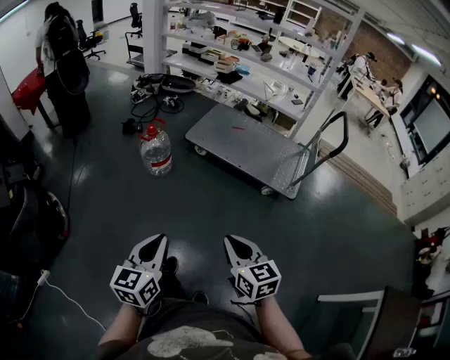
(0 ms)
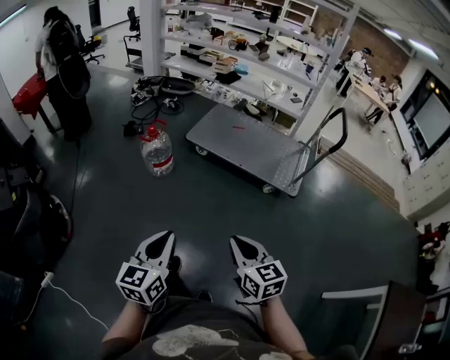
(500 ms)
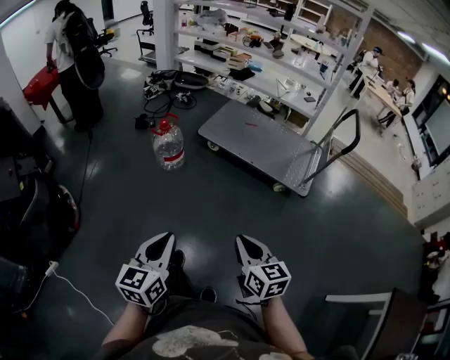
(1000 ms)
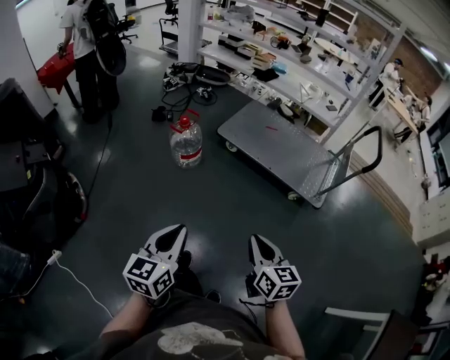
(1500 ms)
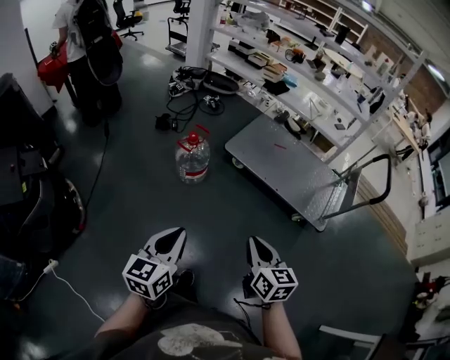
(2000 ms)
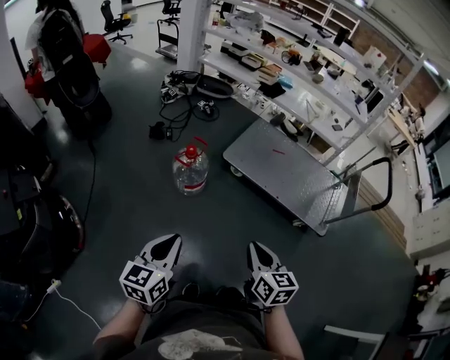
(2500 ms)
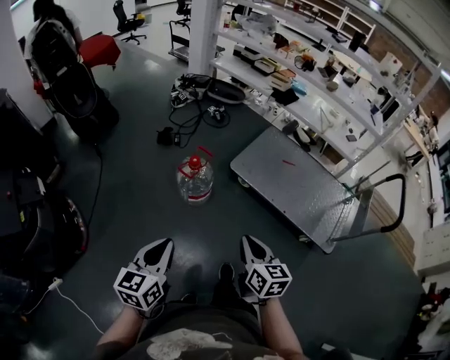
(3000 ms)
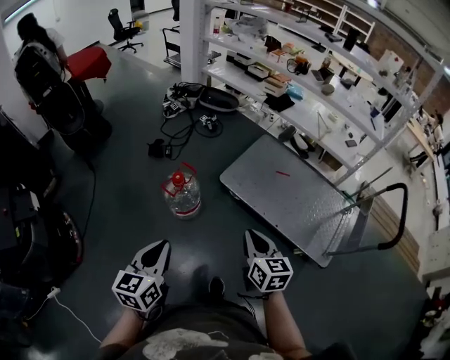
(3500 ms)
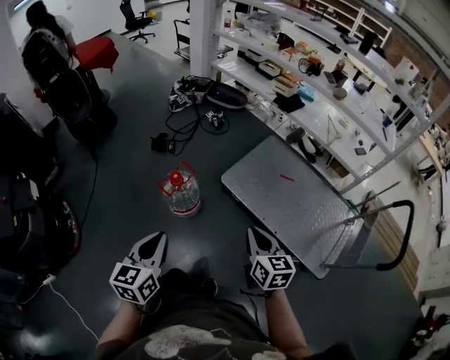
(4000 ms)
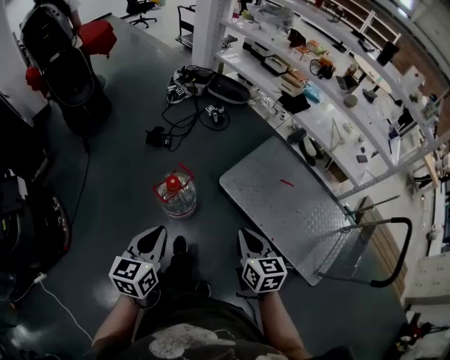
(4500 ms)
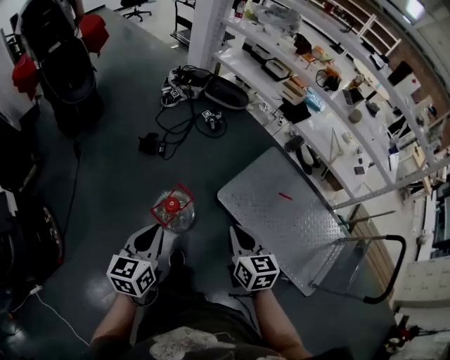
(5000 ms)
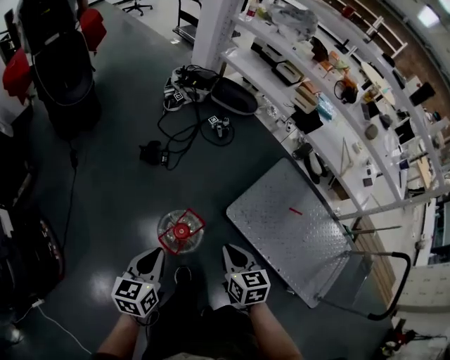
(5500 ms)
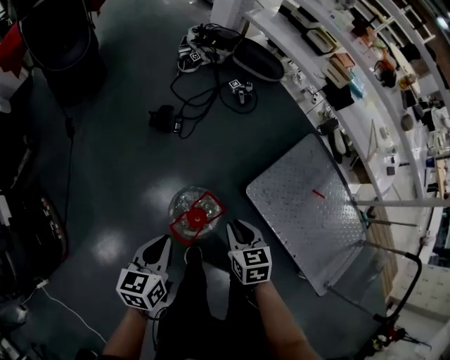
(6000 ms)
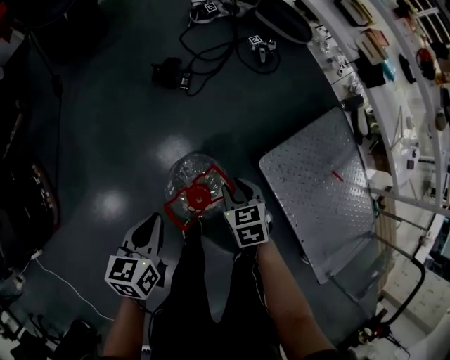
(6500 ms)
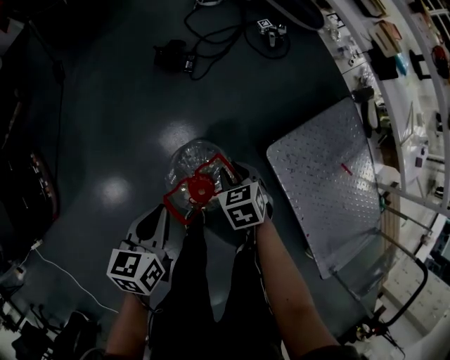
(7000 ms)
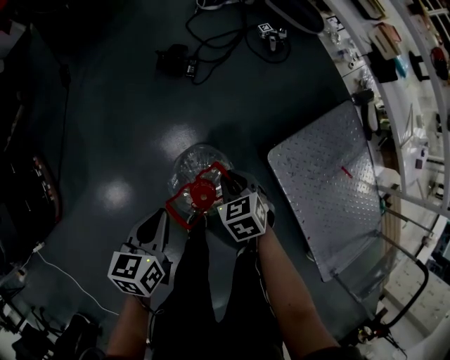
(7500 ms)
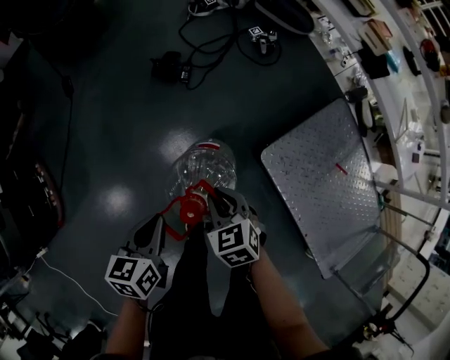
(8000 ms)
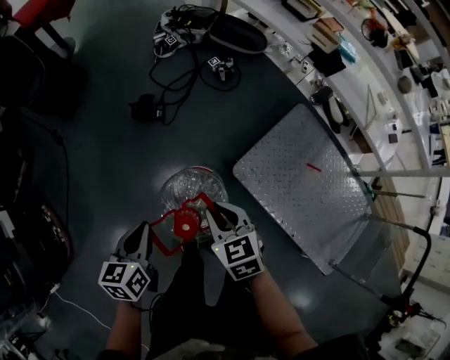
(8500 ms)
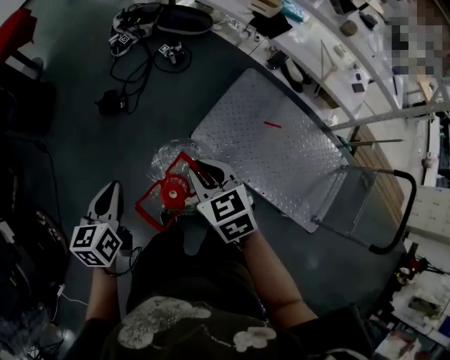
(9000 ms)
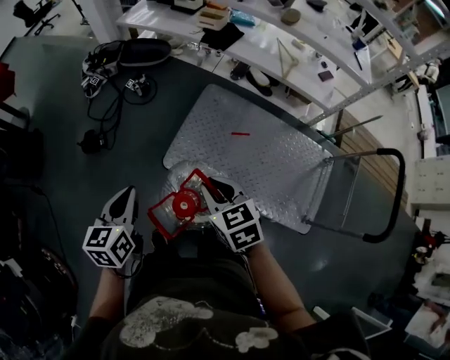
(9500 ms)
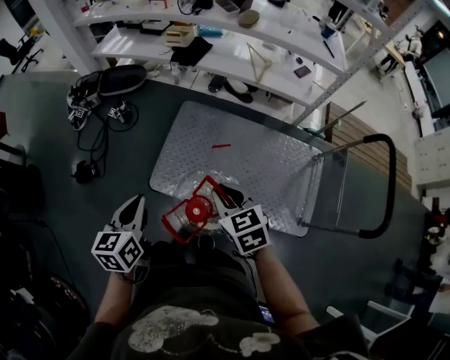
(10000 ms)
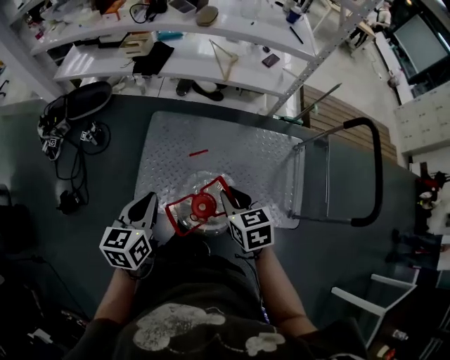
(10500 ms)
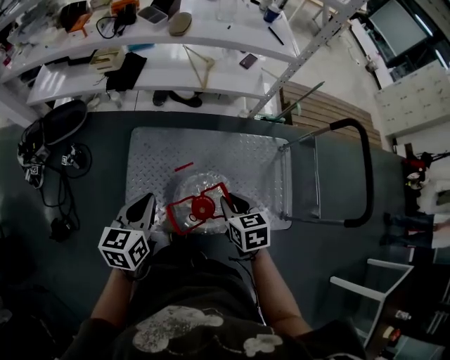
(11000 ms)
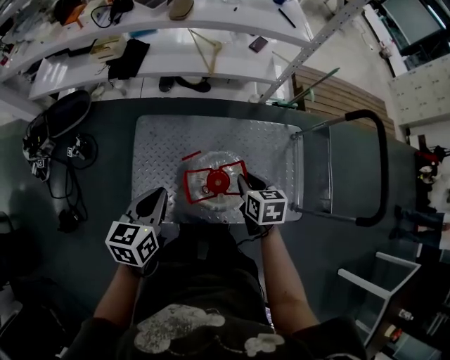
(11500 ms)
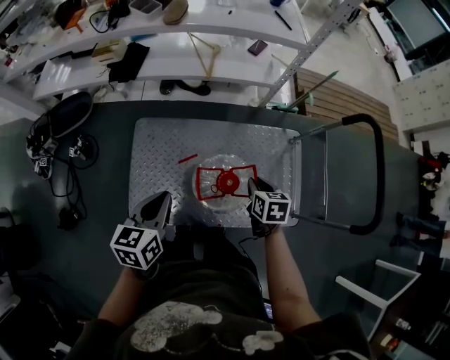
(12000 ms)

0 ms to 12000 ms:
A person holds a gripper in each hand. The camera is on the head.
0 ms to 2000 ms: Both grippers travel together forward and to the left, about 20 cm.
2000 ms to 4000 ms: The grippers both shift forward by roughly 35 cm.
4000 ms to 6000 ms: The left gripper is displaced forward, downward and to the left by some 40 cm; the right gripper shifts roughly 50 cm forward, to the left and downward, and changes its angle by about 30 degrees.
6000 ms to 8000 ms: The left gripper shifts some 10 cm downward. Meanwhile the right gripper heads downward and to the left, covering some 10 cm, and rotates some 30 degrees.
8000 ms to 10000 ms: The two grippers travel together, about 50 cm. The left gripper rotates some 40 degrees; the right gripper swivels some 40 degrees.
10000 ms to 12000 ms: The right gripper ends up roughly 35 cm from where it was, and changes its angle by roughly 50 degrees. Meanwhile the left gripper shifts by about 30 cm, and swivels approximately 30 degrees.

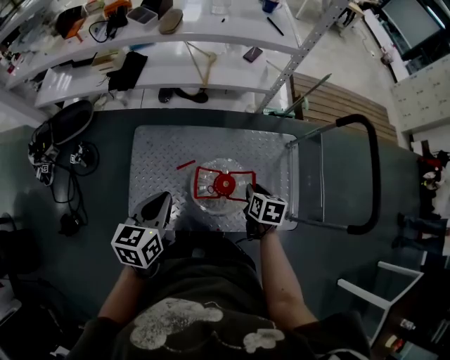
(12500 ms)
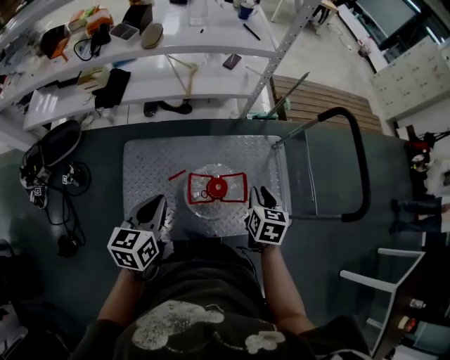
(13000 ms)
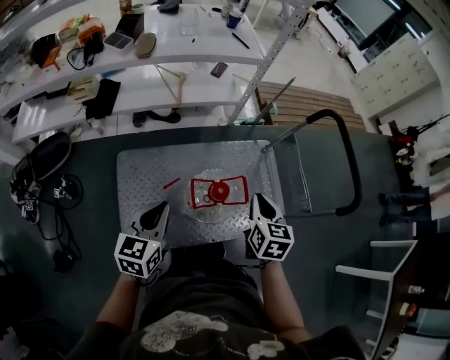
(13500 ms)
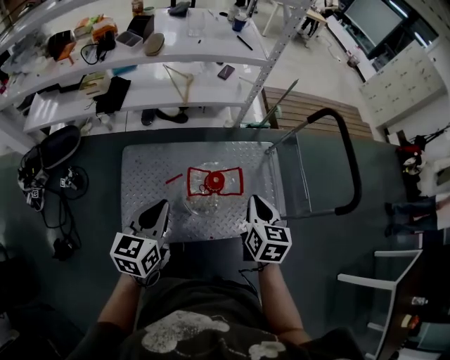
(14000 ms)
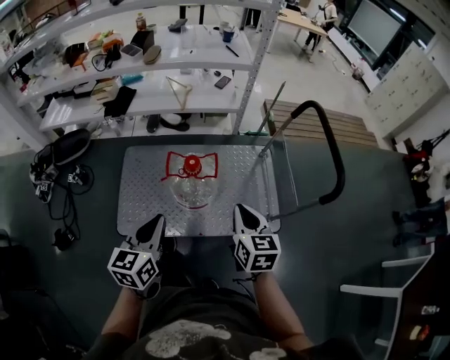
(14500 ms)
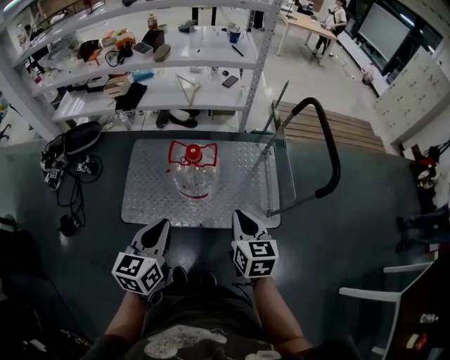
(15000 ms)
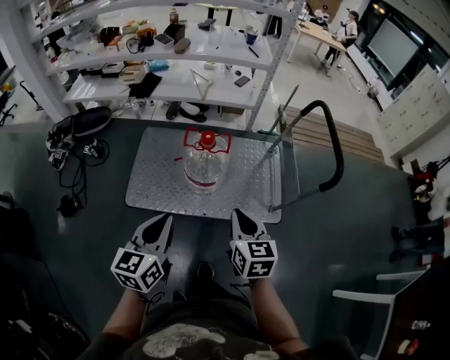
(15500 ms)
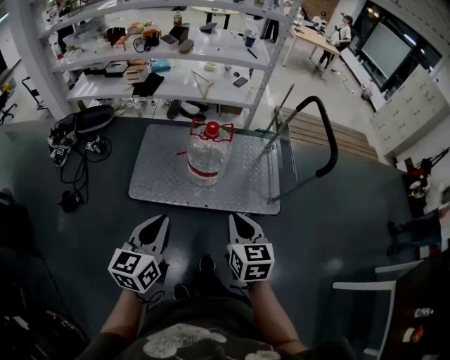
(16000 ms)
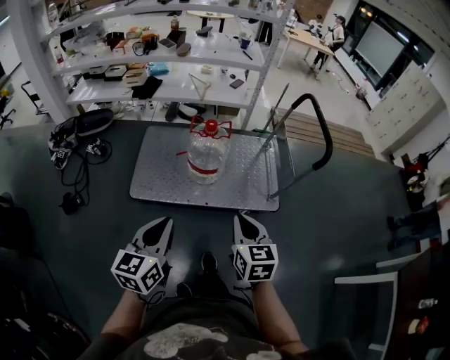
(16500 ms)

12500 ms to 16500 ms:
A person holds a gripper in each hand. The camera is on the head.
12500 ms to 14500 ms: The right gripper is displaced backward, upward and to the right by roughly 30 cm, and rotates some 30 degrees. Meanwhile the left gripper heads backward and to the right, covering roughly 25 cm.
14500 ms to 16500 ms: Both grippers move backward, about 30 cm.

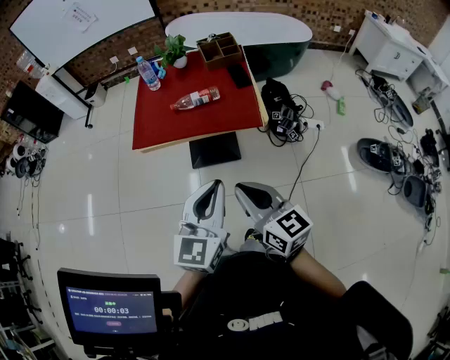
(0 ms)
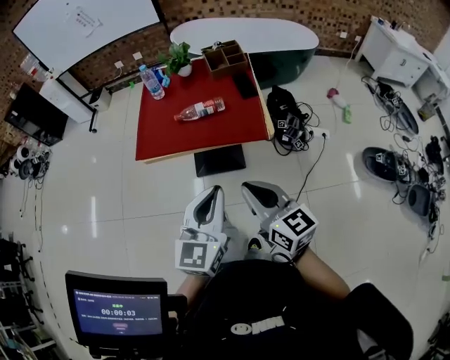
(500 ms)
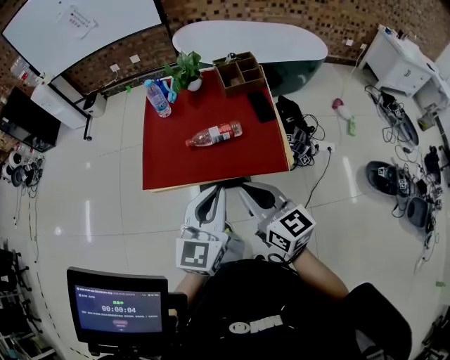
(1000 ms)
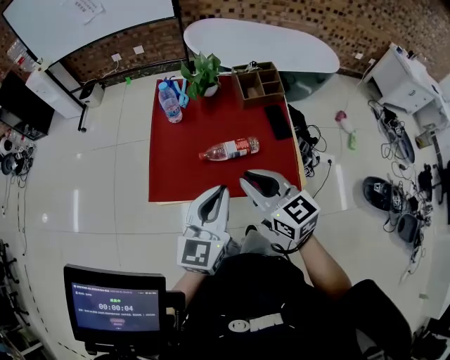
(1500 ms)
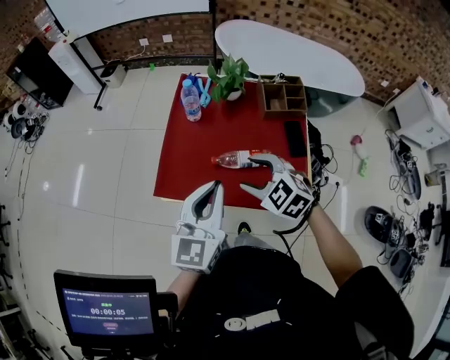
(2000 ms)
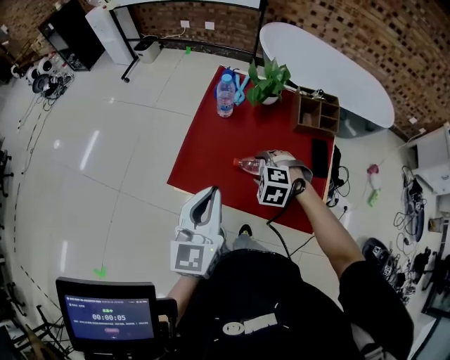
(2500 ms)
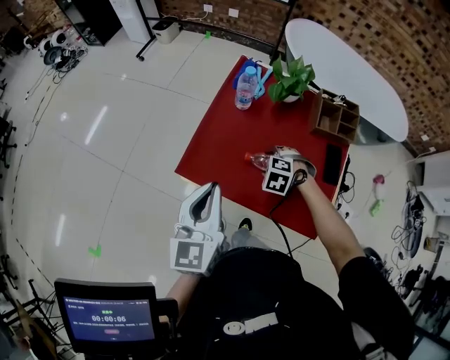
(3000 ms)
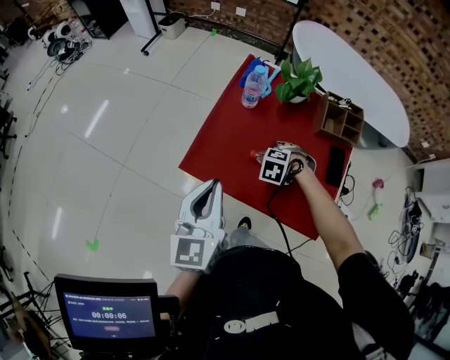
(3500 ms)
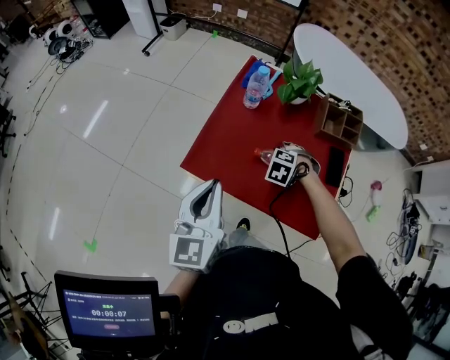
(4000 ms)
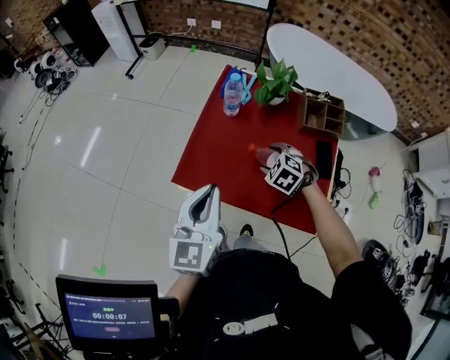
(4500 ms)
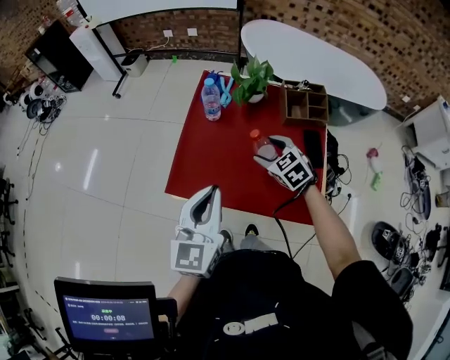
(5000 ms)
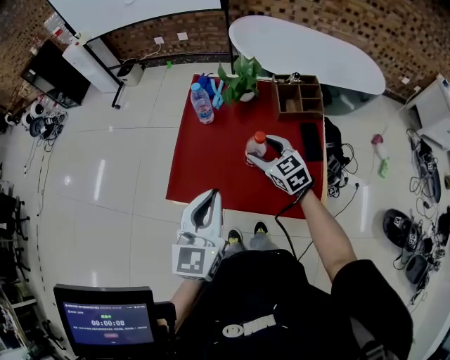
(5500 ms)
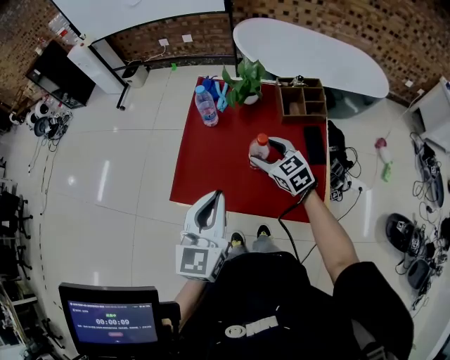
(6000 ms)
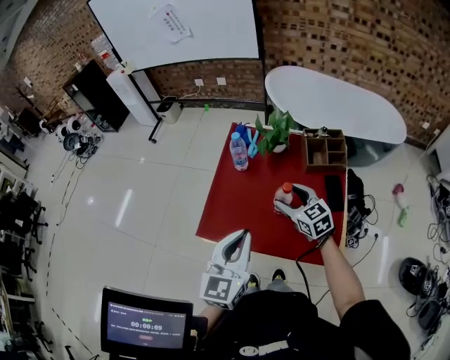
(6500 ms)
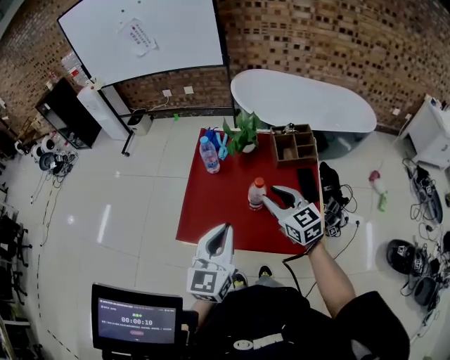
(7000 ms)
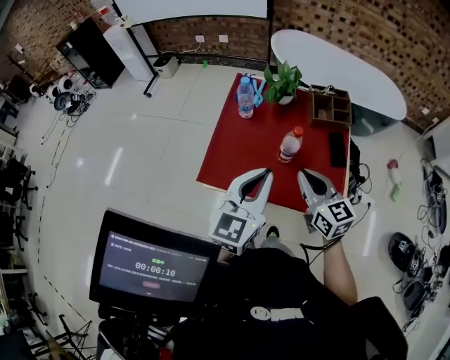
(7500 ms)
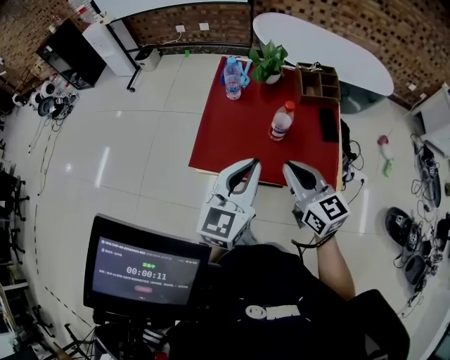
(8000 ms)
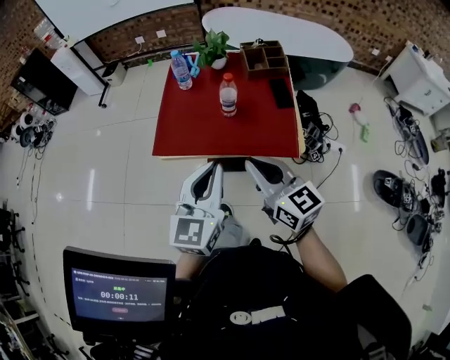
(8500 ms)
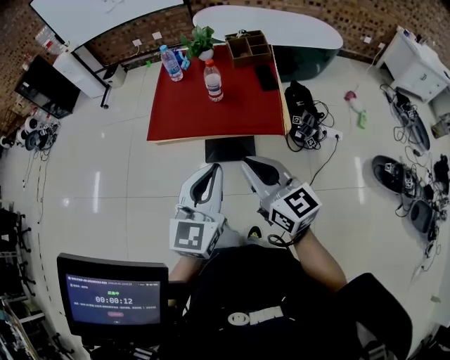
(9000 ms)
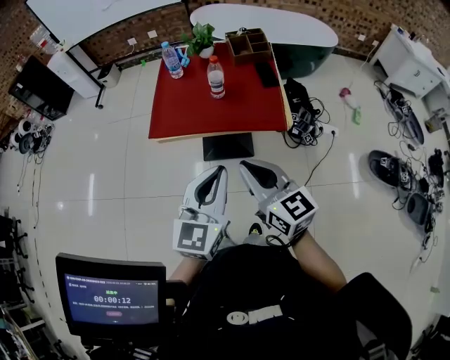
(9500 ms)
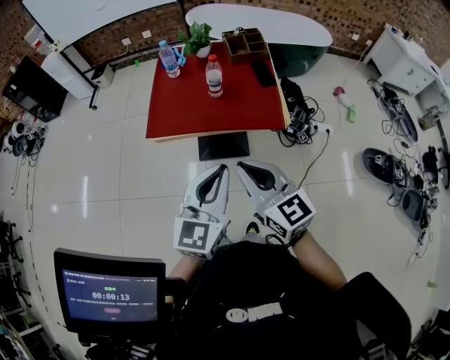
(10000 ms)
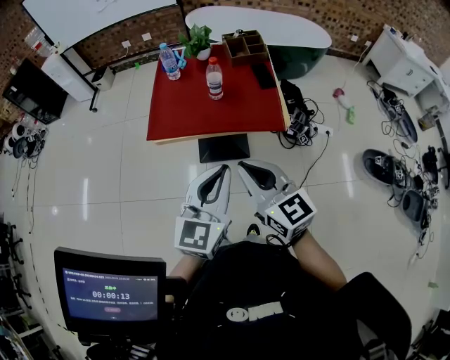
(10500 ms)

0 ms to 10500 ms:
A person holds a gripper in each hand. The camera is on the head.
0 ms to 2000 ms: The grippers both shift forward by roughly 35 cm. The right gripper tips its fingers downward by some 40 degrees, and opens.
2000 ms to 4000 ms: The left gripper shifts by about 10 cm, and rotates roughly 20 degrees; the right gripper is displaced downward by some 20 cm, and angles its fingers downward, by roughly 40 degrees.
4000 ms to 6500 ms: The right gripper goes about 15 cm upward, and tilts its fingers roughly 50 degrees upward; the left gripper ends up approximately 10 cm from where it was.
6500 ms to 8500 ms: The left gripper is displaced backward by approximately 15 cm; the right gripper moves backward and upward, some 35 cm, swivels about 20 degrees, and closes its fingers.
8500 ms to 10500 ms: The two grippers go about 15 cm backward.
